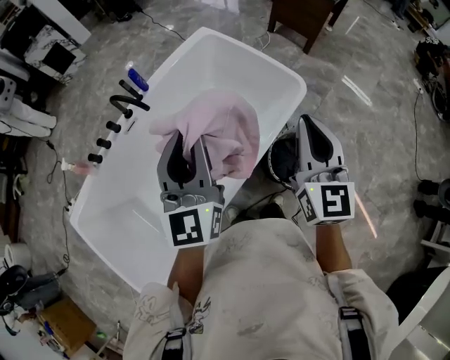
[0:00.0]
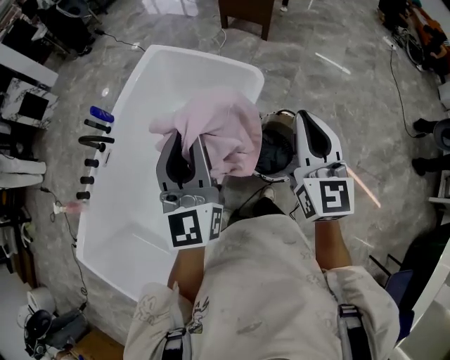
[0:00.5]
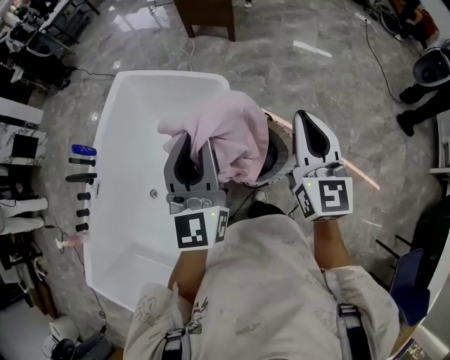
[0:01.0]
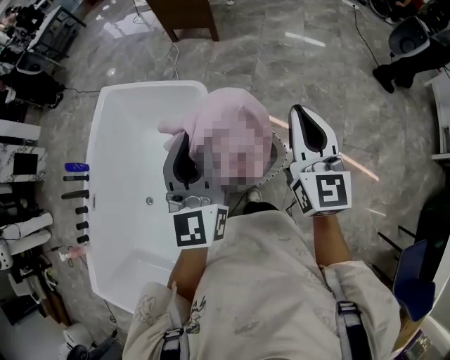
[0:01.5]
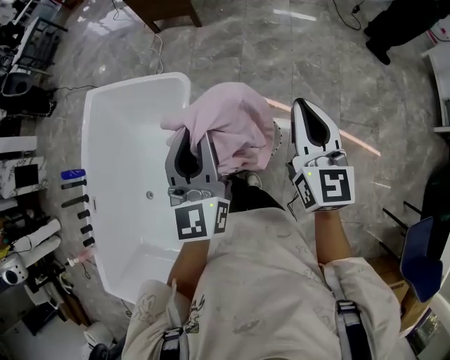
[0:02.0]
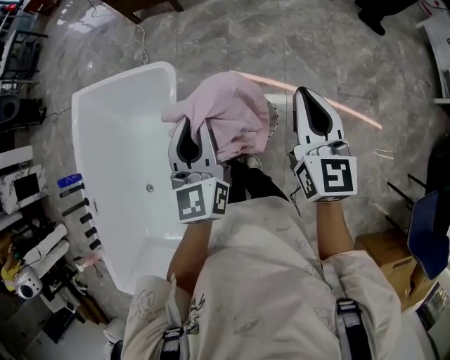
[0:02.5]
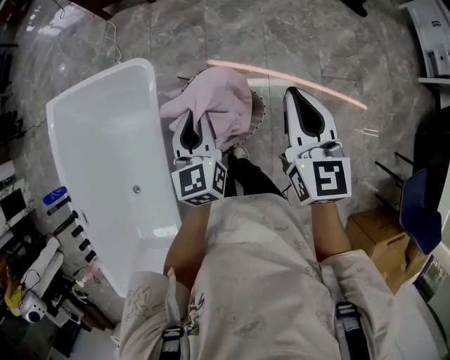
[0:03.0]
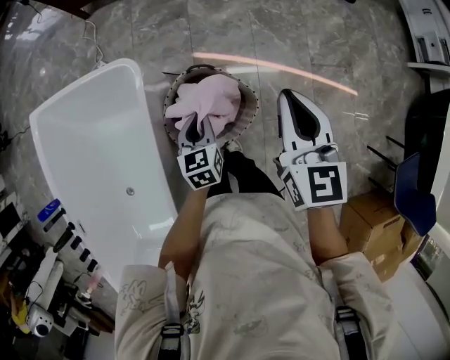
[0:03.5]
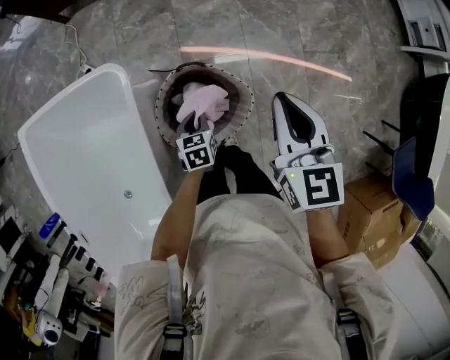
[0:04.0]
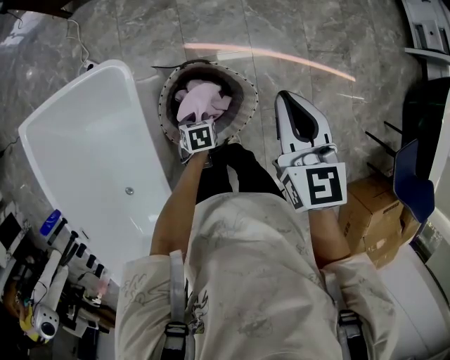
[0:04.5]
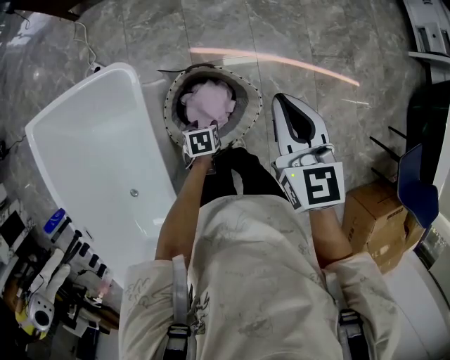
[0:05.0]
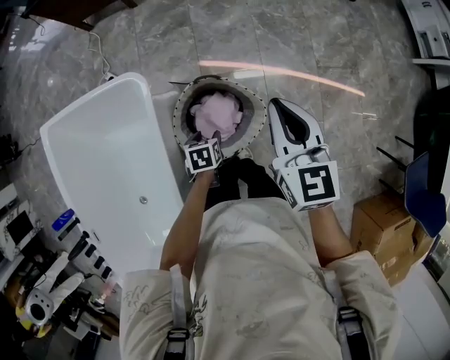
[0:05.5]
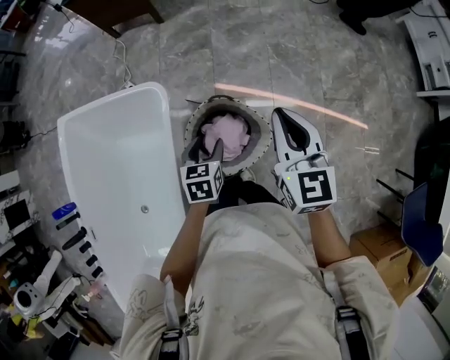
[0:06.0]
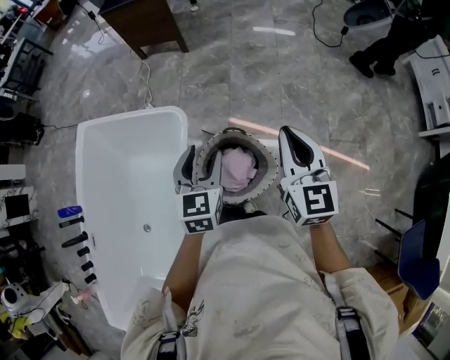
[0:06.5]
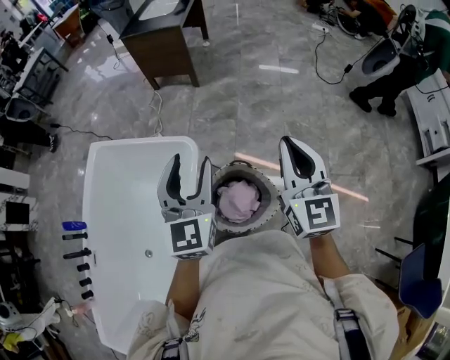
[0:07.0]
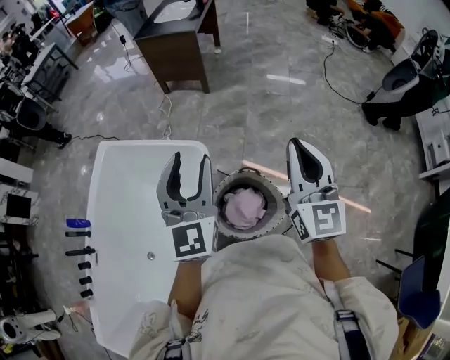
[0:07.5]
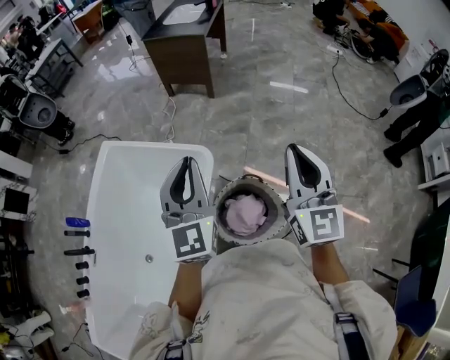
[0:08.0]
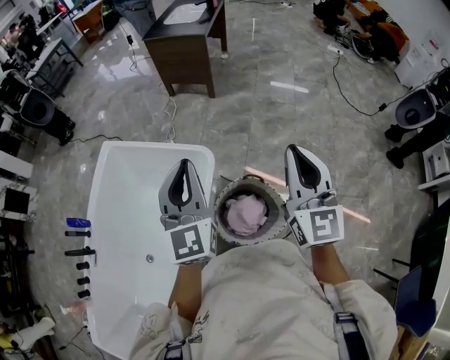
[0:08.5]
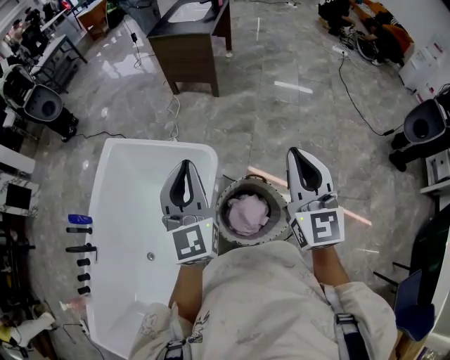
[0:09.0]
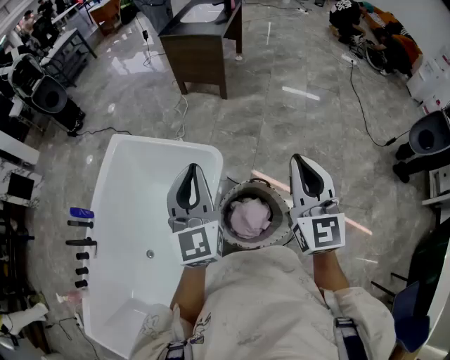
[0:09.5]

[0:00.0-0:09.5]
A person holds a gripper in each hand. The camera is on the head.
0:00.0 to 0:02.0: The two grippers travel together, approximately 50 cm. The right gripper changes its angle by about 30 degrees. The left gripper swivels approximately 30 degrees.
0:02.0 to 0:04.0: The right gripper shifts some 15 cm downward, and rotates about 20 degrees; the left gripper shifts about 40 cm downward, and tilts its fingers some 50 degrees downward.
0:04.0 to 0:05.5: The left gripper opens up.
0:05.5 to 0:07.5: The right gripper shifts about 20 cm upward, and swivels some 30 degrees; the left gripper travels upward by approximately 50 cm, and points its fingers approximately 70 degrees further upward.
0:07.5 to 0:09.5: Both grippers move to the left, approximately 5 cm. The left gripper closes.

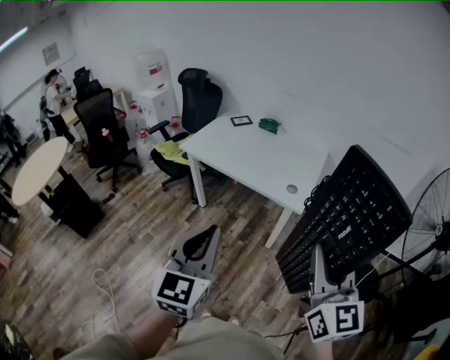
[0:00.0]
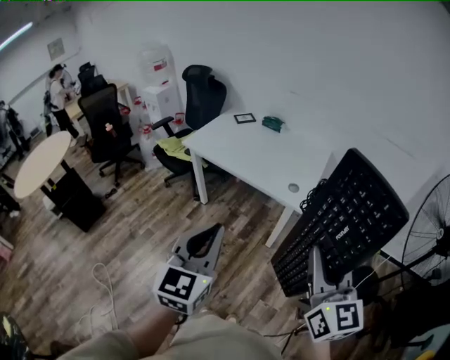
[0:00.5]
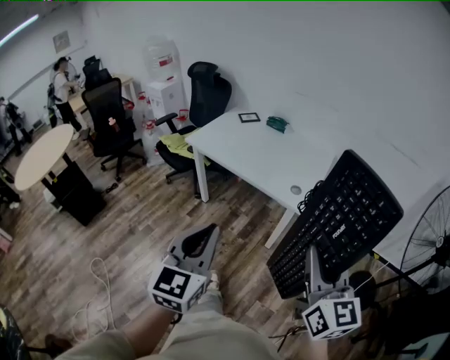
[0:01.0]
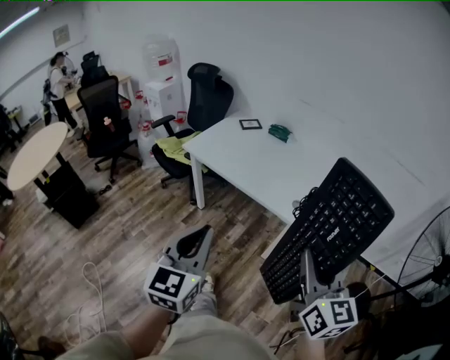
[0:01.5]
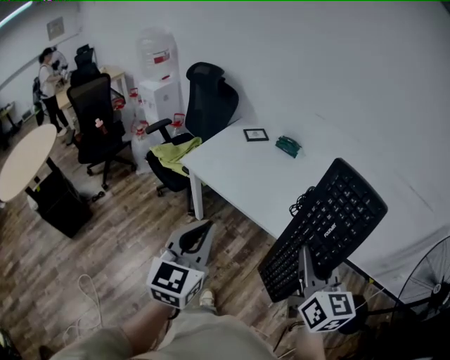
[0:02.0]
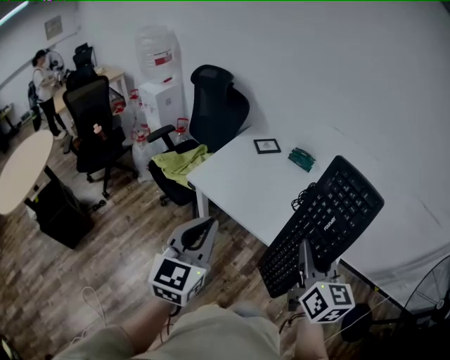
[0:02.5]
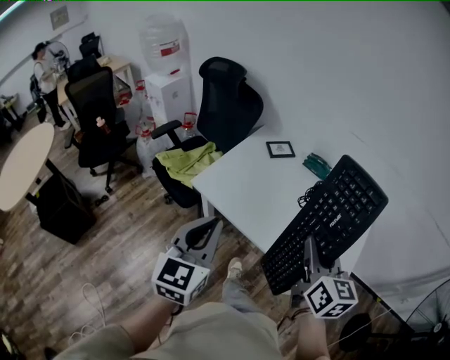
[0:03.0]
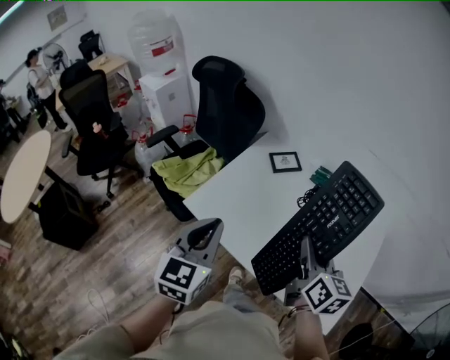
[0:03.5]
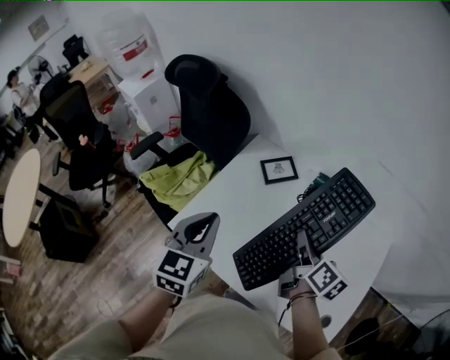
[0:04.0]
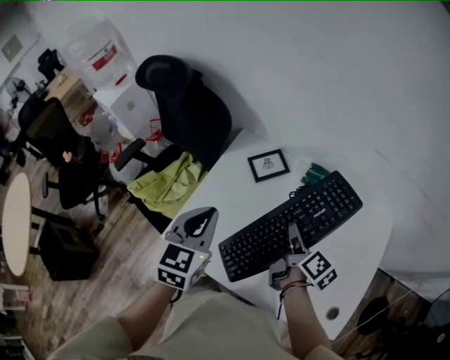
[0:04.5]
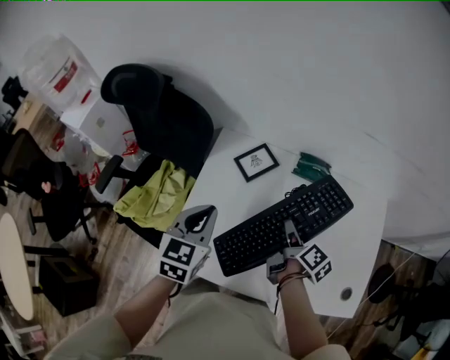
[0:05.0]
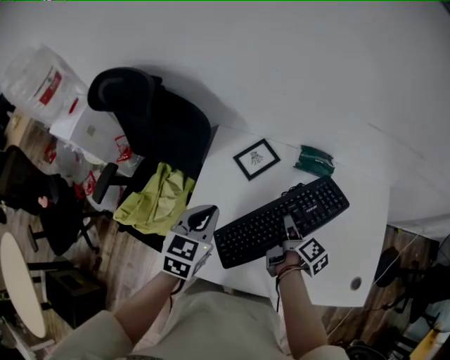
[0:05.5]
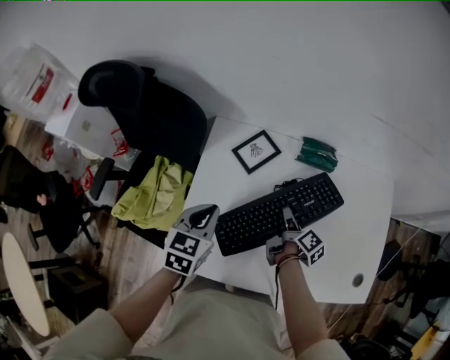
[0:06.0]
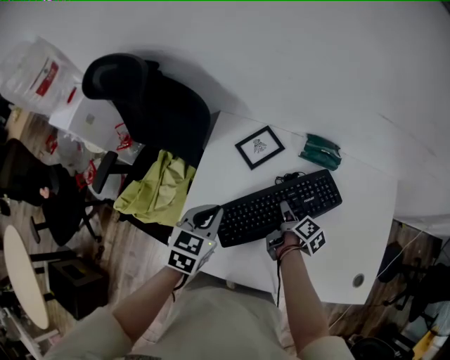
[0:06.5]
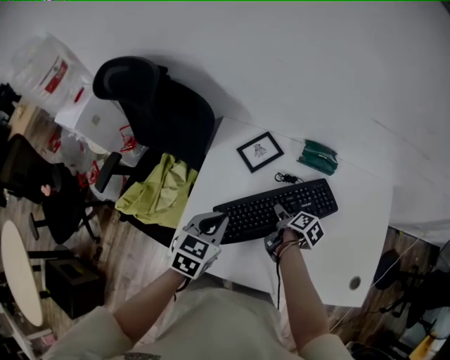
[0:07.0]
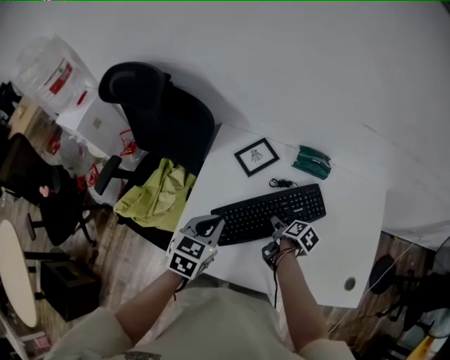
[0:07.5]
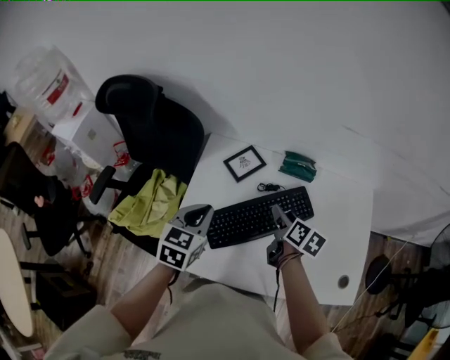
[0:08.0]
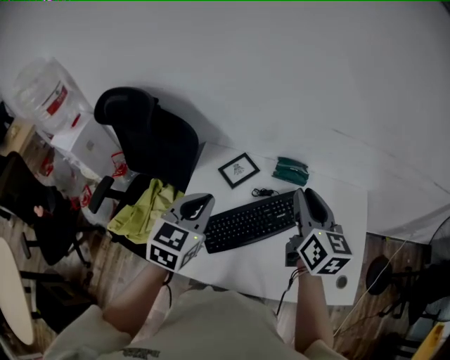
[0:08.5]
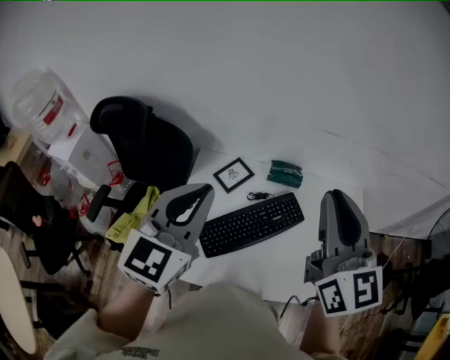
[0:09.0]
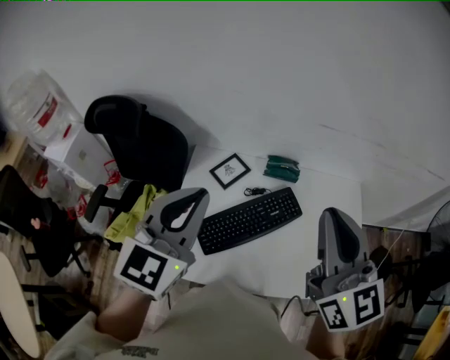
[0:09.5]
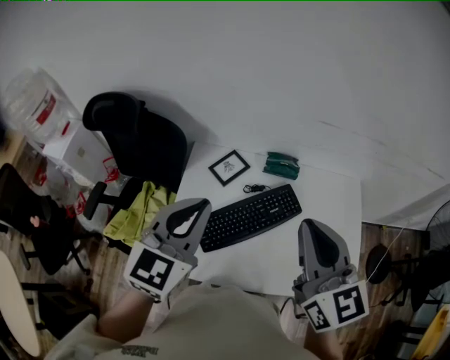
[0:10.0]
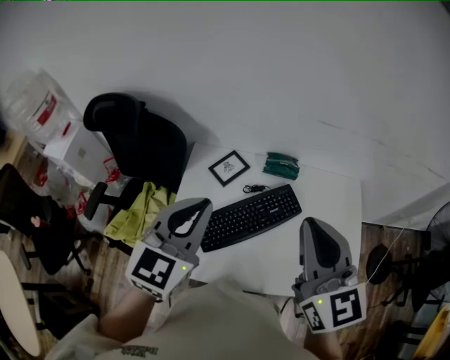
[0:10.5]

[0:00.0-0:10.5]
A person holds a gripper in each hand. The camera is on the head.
0:00.0 to 0:02.0: The right gripper shifts some 30 cm forward. Meanwhile the left gripper travels forward and to the left by about 30 cm.
0:02.0 to 0:04.0: Both grippers are carried forward, some 50 cm. The right gripper rolls clockwise, seen from behind, by roughly 40 degrees.
0:04.0 to 0:06.5: Both grippers travel together downward, roughly 20 cm. The left gripper swivels roughly 30 degrees, while the right gripper changes its angle by roughly 40 degrees, and opens its fingers.
0:06.5 to 0:08.5: The left gripper moves upward, roughly 15 cm; the right gripper shifts about 35 cm upward, rotates around the line of its fingers by about 60 degrees, counterclockwise from behind, and opens and closes again.
0:08.5 to 0:10.5: The left gripper shifts roughly 10 cm upward, while the right gripper is displaced backward and upward by approximately 15 cm, and turns by some 20 degrees.

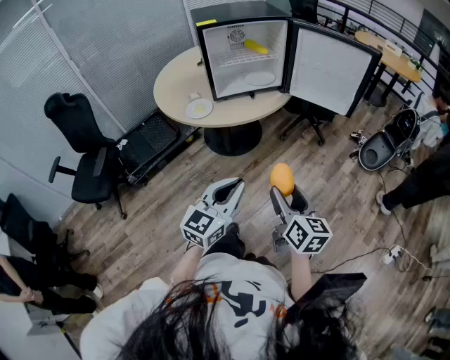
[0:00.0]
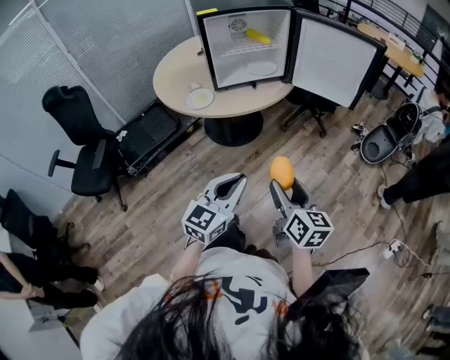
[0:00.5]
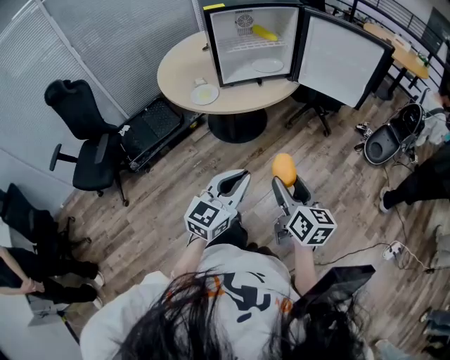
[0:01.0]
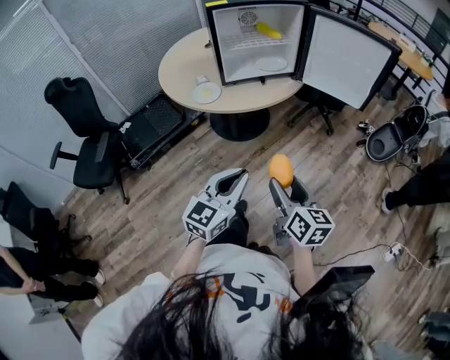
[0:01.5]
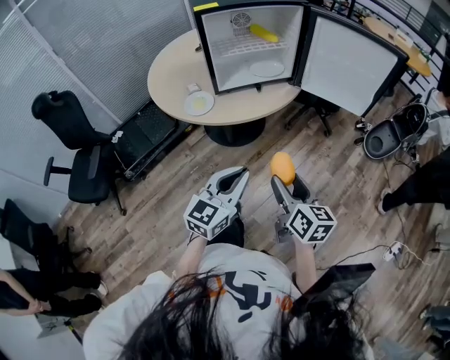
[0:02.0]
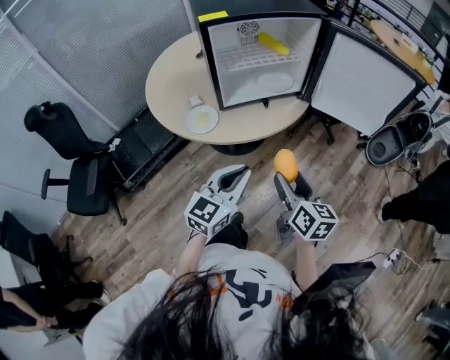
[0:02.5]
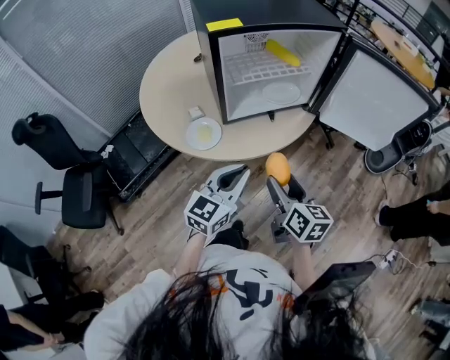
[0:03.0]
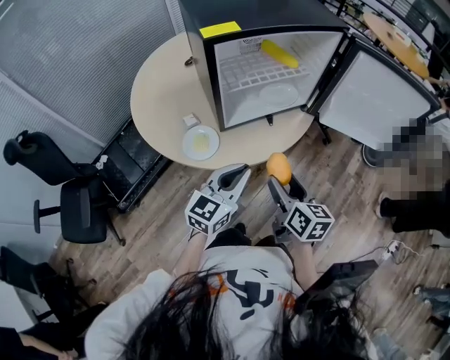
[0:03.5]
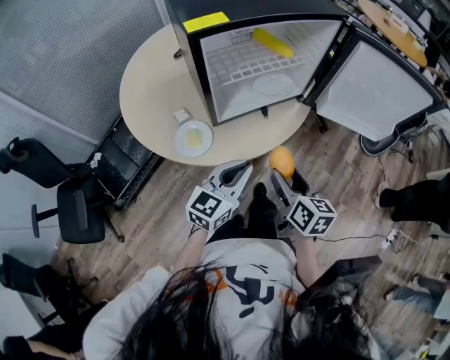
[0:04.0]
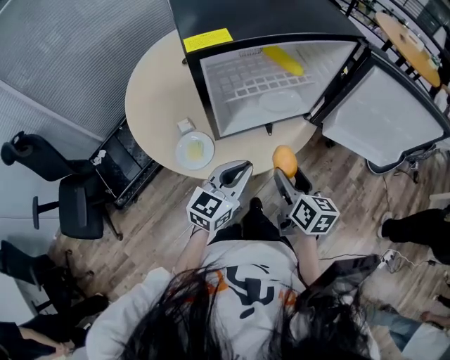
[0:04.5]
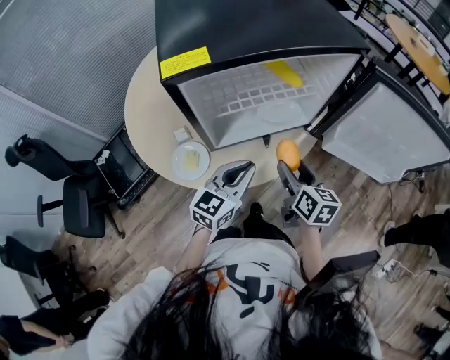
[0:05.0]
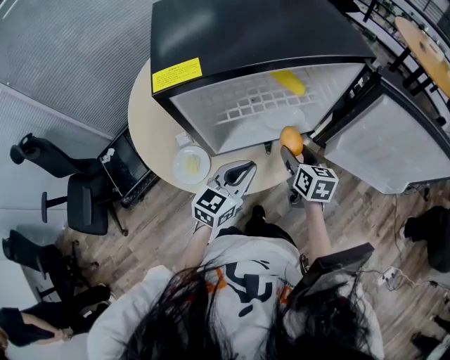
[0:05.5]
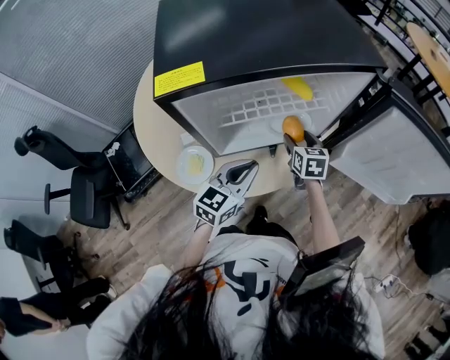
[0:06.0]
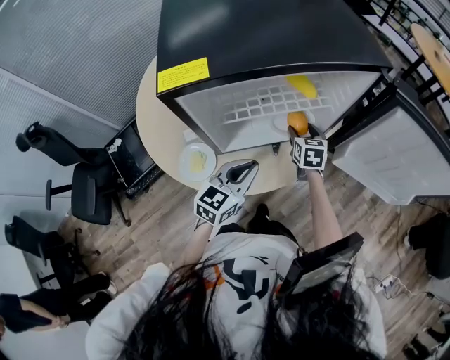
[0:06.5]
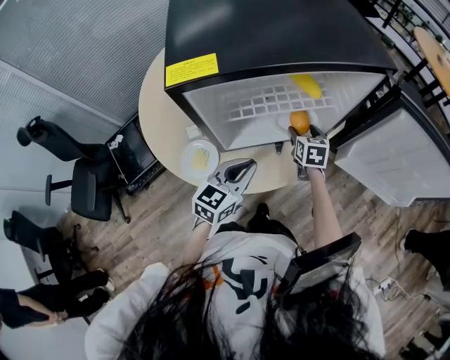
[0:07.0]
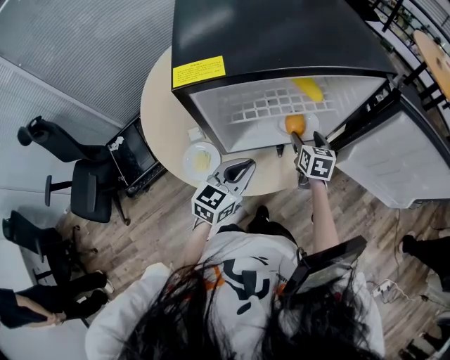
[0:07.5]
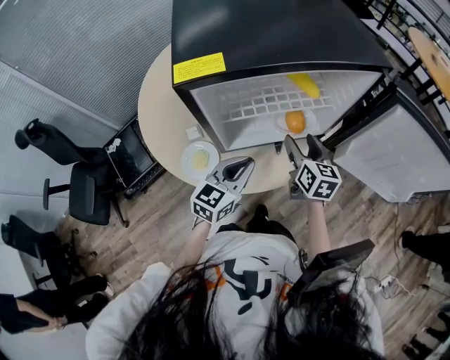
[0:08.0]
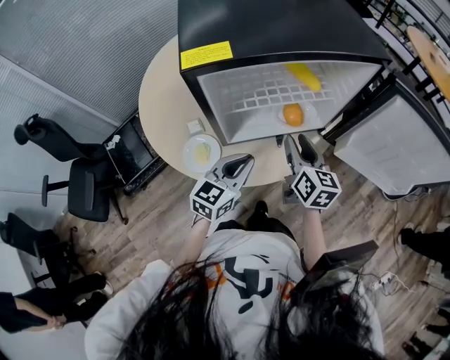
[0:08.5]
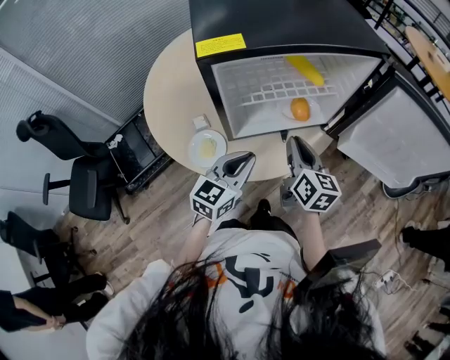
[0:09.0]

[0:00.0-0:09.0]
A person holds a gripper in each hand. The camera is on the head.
0:00.0 to 0:02.0: The two grippers go roughly 10 cm forward.
0:02.0 to 0:04.5: The two grippers go about 30 cm forward.
0:04.5 to 0:07.0: The left gripper goes roughly 10 cm forward; the right gripper shifts some 30 cm forward and downward, and swivels roughly 30 degrees.
0:07.0 to 0:09.0: The right gripper travels backward and upward by roughly 20 cm, turns by some 30 degrees, and closes; the left gripper shifts by about 5 cm.
